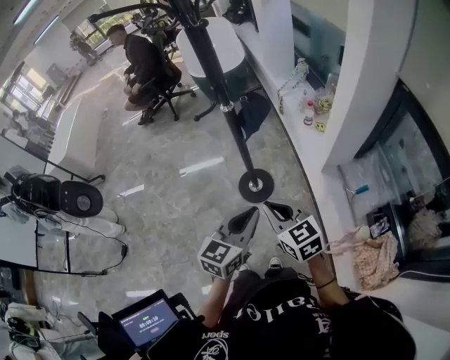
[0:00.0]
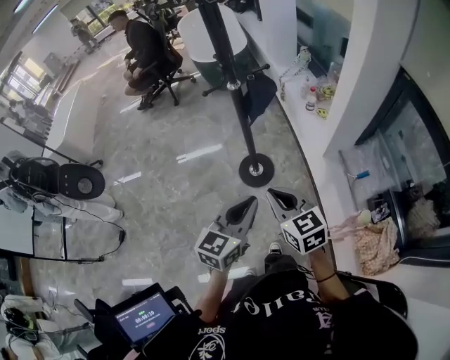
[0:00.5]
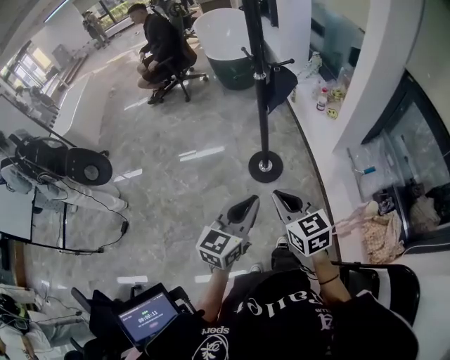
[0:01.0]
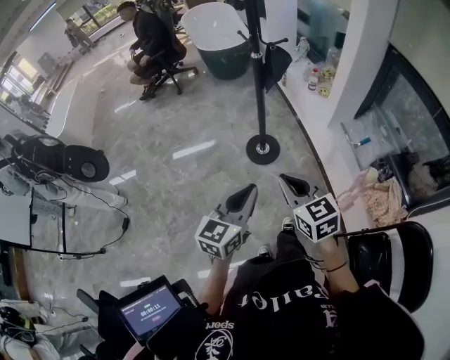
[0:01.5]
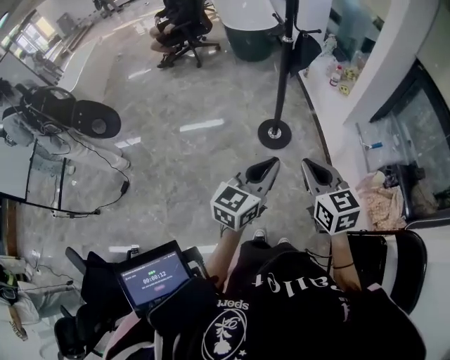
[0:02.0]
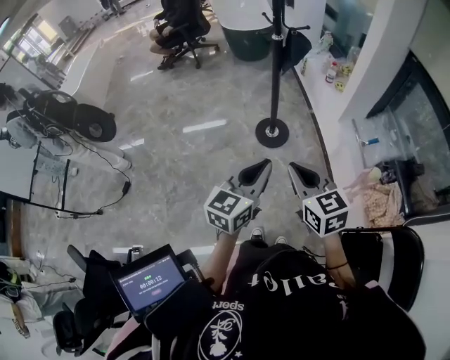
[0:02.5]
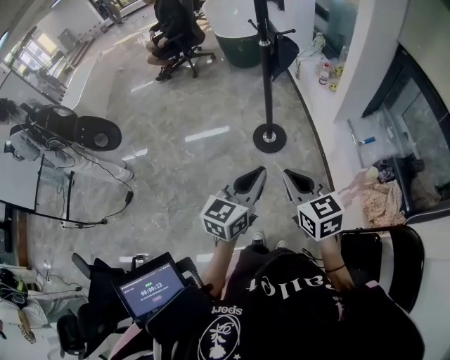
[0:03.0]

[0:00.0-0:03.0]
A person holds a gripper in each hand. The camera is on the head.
0.0 to 1.5 s: Both grippers move backward and to the left, approximately 25 cm.
1.5 to 3.0 s: The left gripper is displaced to the right by approximately 5 cm; the right gripper shifts about 10 cm backward and to the right.

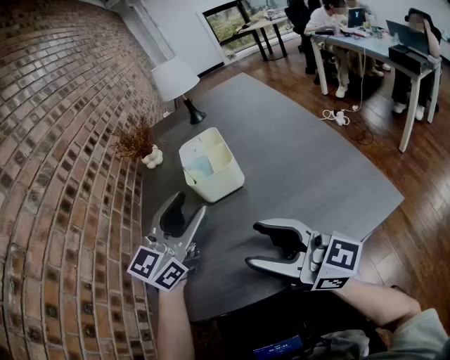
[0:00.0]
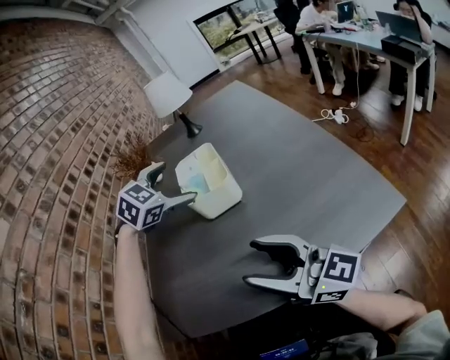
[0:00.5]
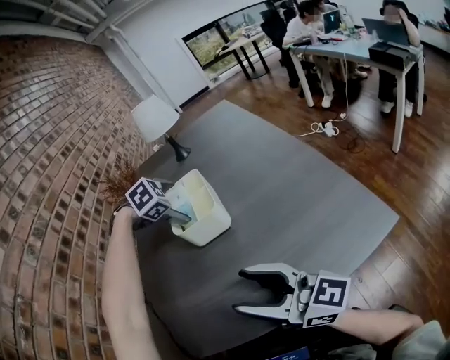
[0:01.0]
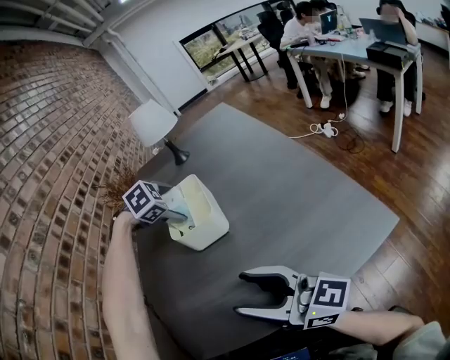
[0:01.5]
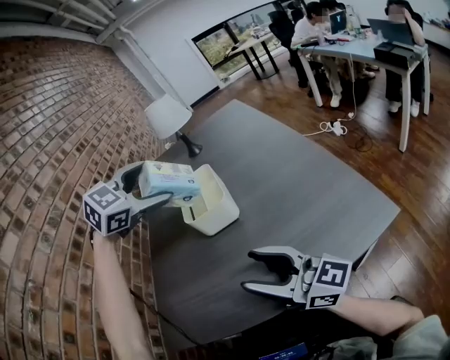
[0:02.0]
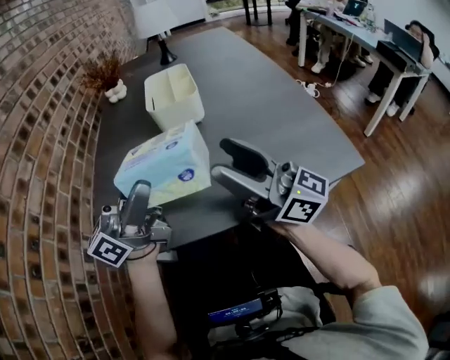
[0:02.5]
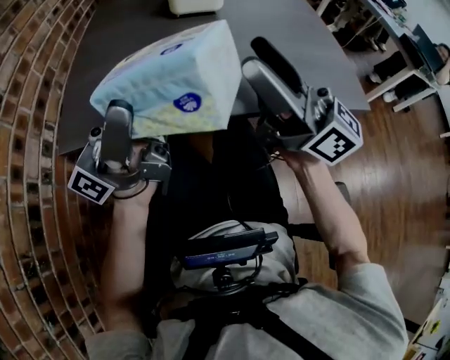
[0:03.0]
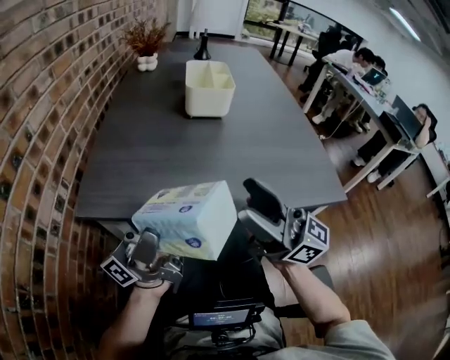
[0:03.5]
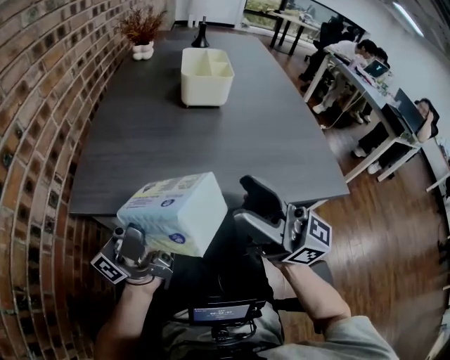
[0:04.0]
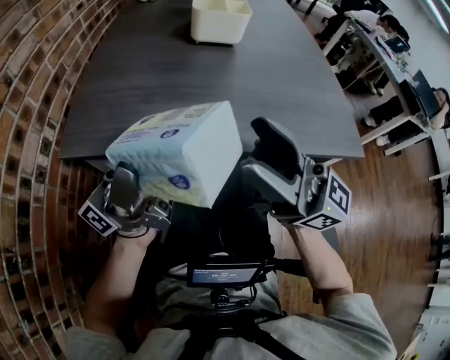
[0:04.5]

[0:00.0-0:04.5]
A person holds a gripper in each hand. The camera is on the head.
0.0 to 2.0 s: The left gripper travels forward and upward by some 15 cm, tilts its fingers about 40 degrees downward, and opens up.
2.0 to 4.5 s: The right gripper heads backward, covering approximately 10 cm. Meanwhile the left gripper travels backward and downward by some 40 cm, and angles its fingers upward, by about 90 degrees.

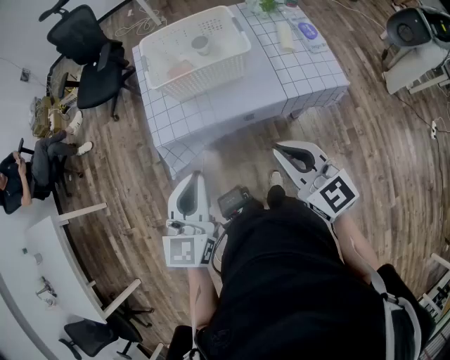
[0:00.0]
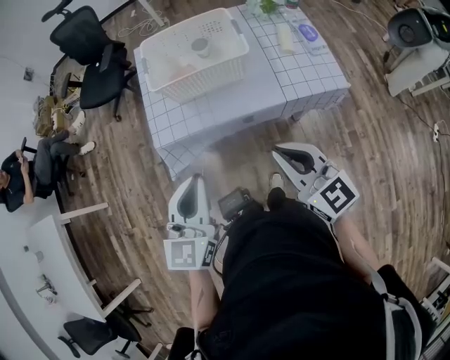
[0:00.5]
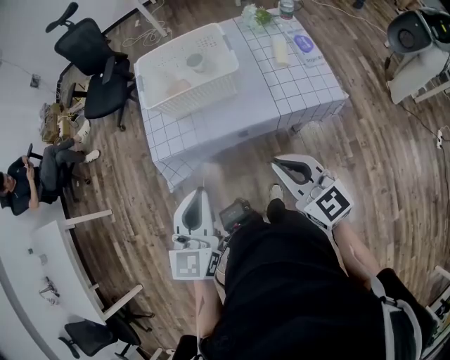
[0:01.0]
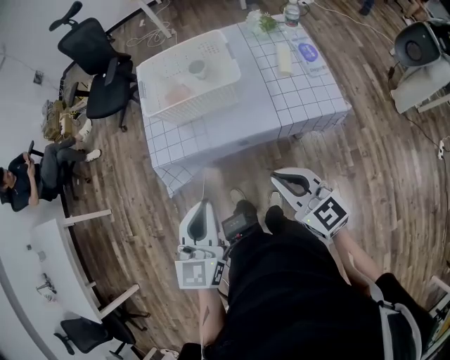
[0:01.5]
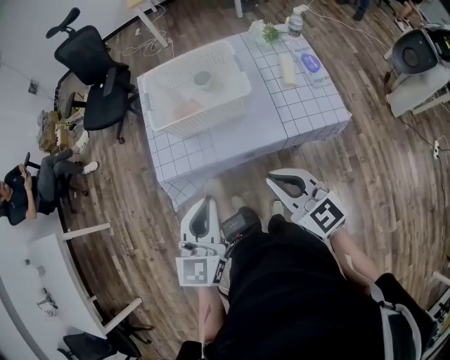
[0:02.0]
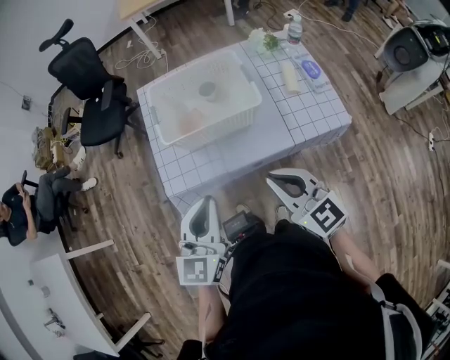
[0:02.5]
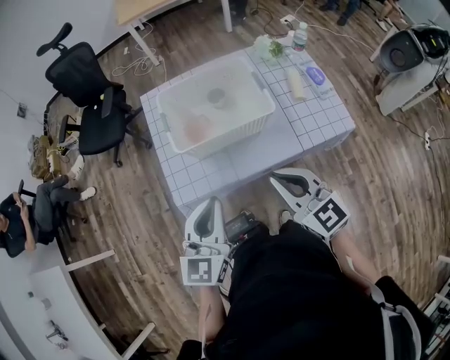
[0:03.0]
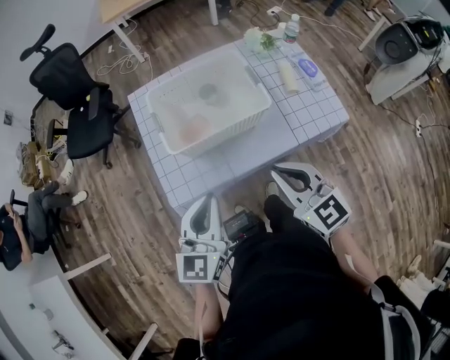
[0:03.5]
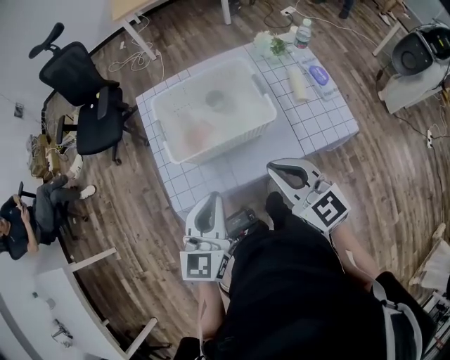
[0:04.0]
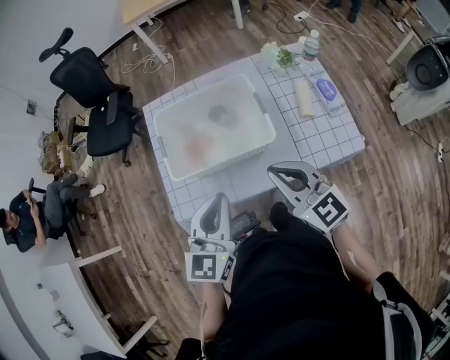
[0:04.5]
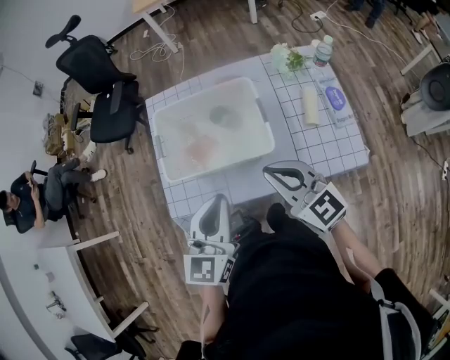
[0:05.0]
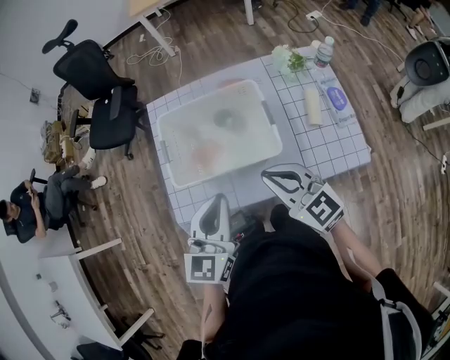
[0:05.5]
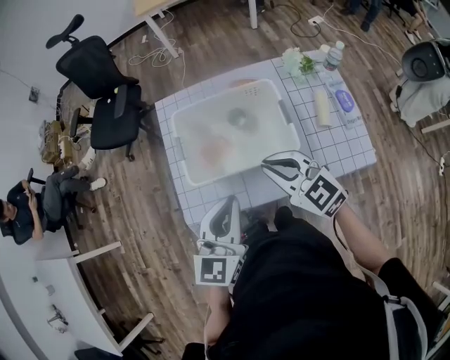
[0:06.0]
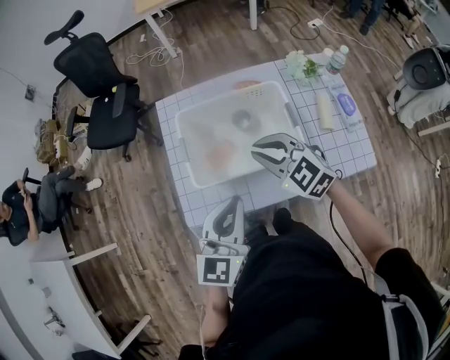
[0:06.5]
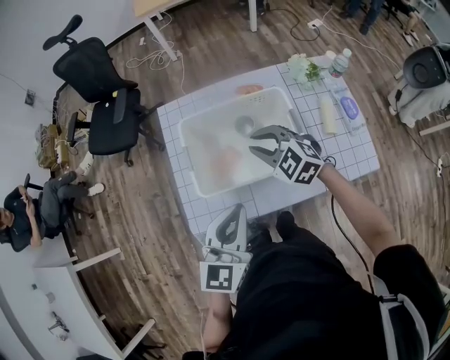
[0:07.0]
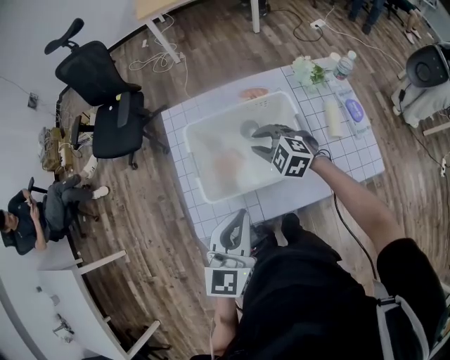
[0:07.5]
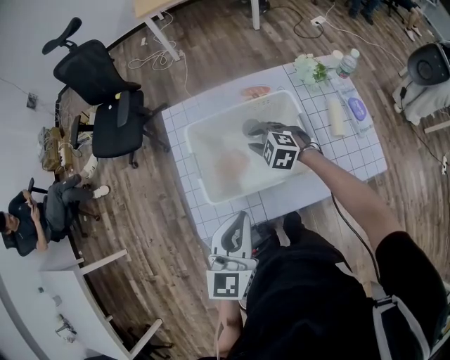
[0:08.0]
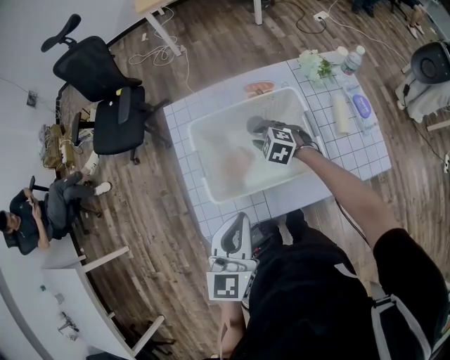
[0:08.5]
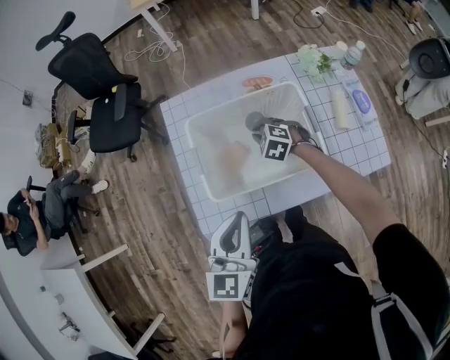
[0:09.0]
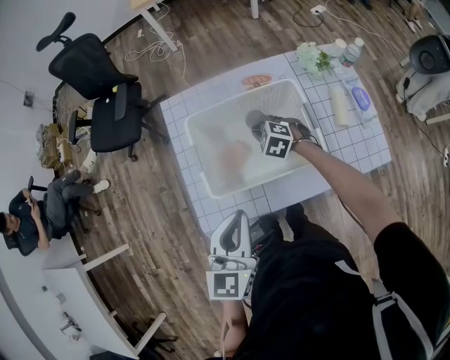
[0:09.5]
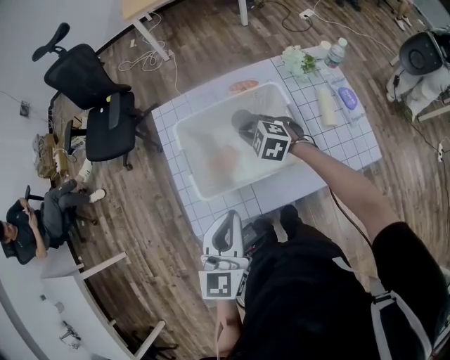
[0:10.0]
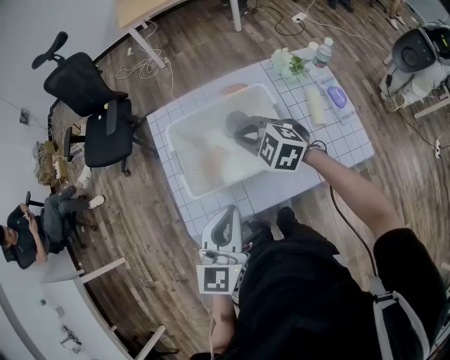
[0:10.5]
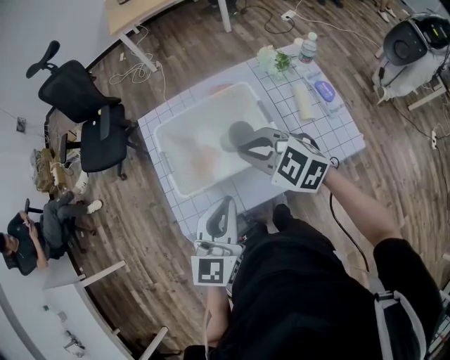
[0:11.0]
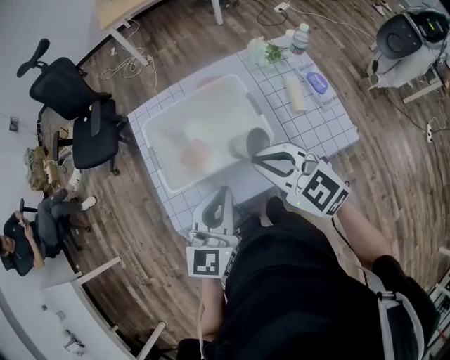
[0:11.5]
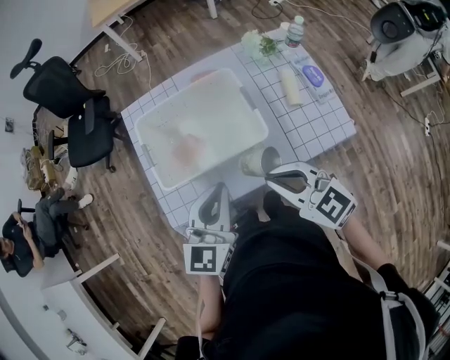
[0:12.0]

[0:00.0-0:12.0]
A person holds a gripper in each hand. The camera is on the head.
0.0 to 2.0 s: The right gripper goes some 5 cm forward; the left gripper moves to the right, about 5 cm.
2.0 to 4.0 s: Both grippers travel together forward, about 15 cm.
4.0 to 6.0 s: The right gripper travels forward by some 10 cm, while the left gripper is displaced forward by approximately 5 cm, and goes to the right and returns, approximately 10 cm each way.
6.0 to 8.0 s: The right gripper is displaced forward and downward by roughly 25 cm, and changes its angle by some 40 degrees.
8.0 to 10.0 s: The right gripper reaches about 5 cm downward, then returns.
10.0 to 12.0 s: The left gripper shifts some 10 cm to the right. Meanwhile the right gripper heads backward and upward, covering about 30 cm, and rotates some 40 degrees.

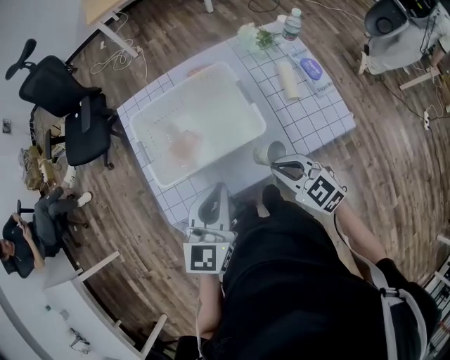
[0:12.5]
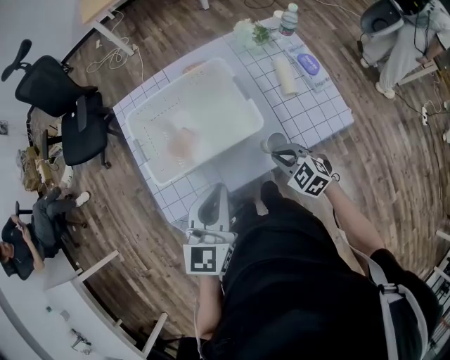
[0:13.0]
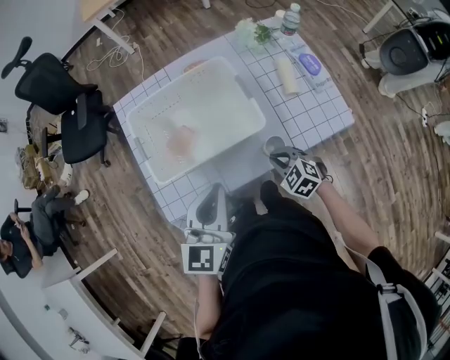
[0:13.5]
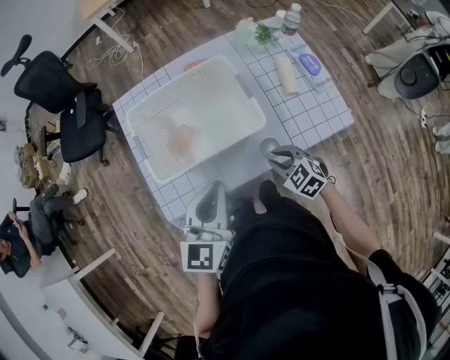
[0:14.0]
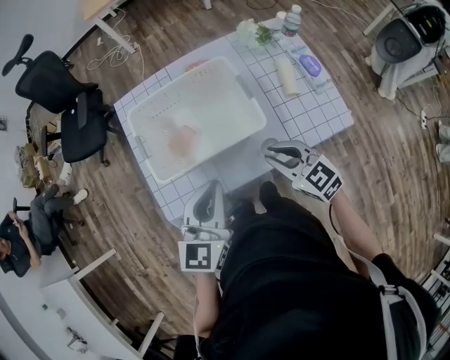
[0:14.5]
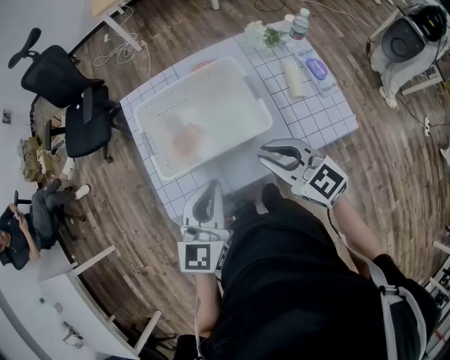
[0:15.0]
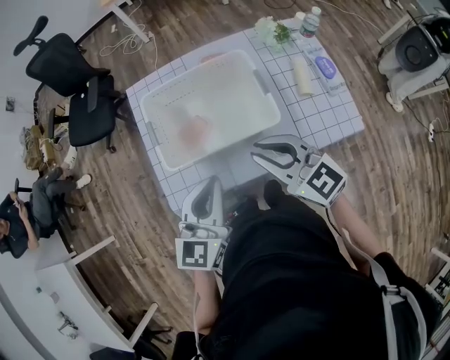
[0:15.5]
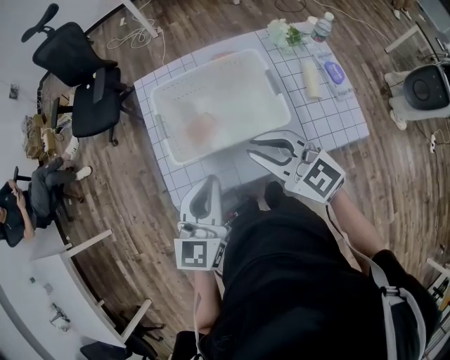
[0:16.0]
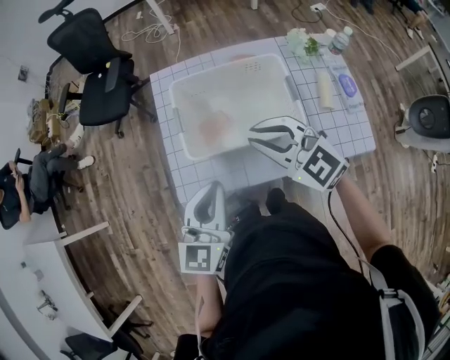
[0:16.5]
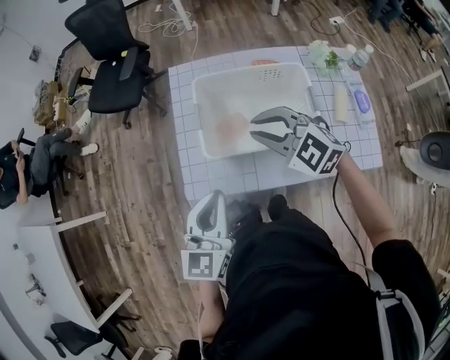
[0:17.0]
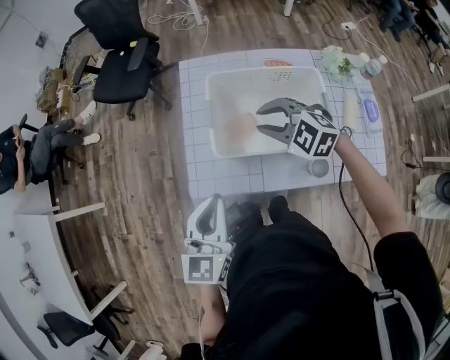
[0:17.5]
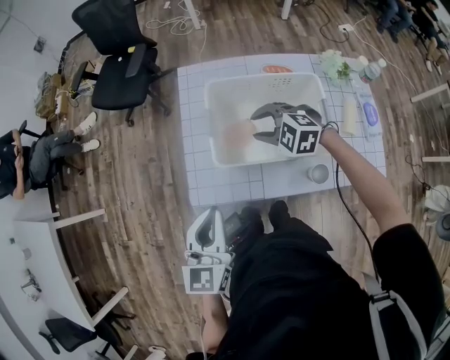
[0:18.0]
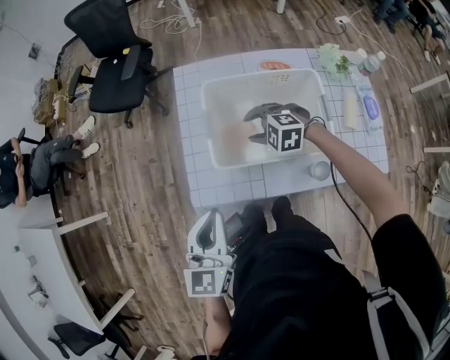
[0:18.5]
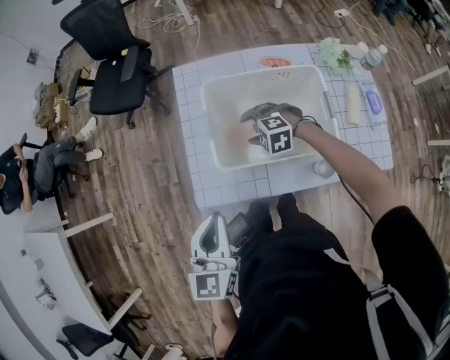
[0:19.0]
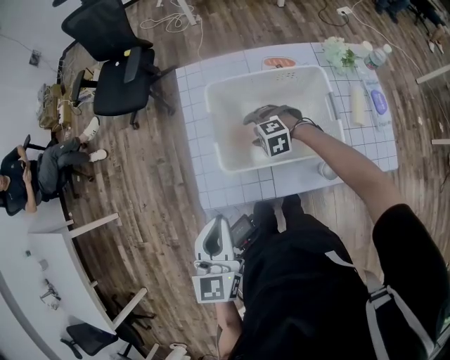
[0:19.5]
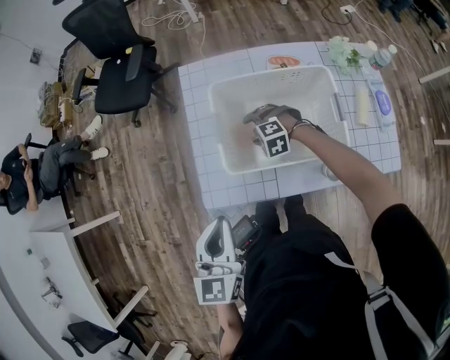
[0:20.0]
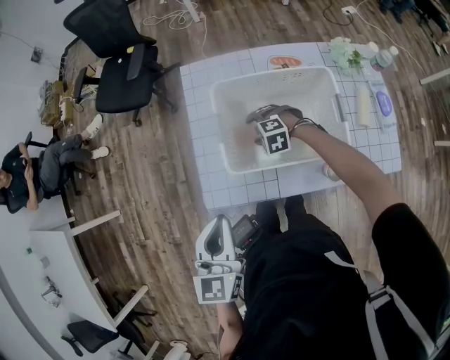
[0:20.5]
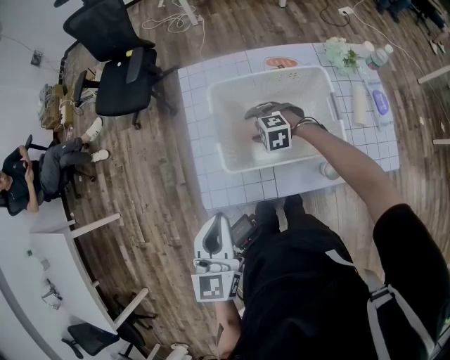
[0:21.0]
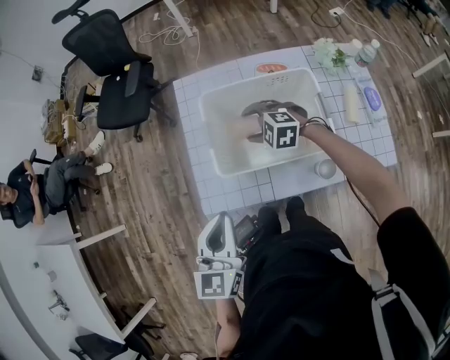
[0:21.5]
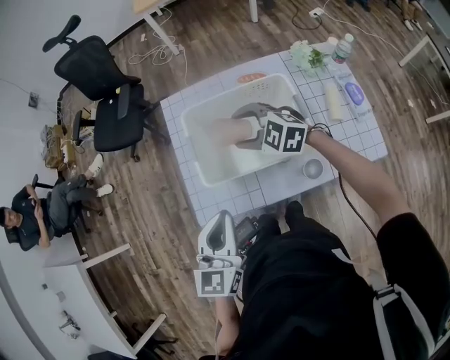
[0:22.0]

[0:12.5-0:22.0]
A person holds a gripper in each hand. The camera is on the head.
12.5 to 14.5 s: The right gripper moves some 15 cm downward and comes back.
14.5 to 16.5 s: The right gripper goes about 20 cm to the left, upward and forward, and swivels roughly 30 degrees, while the left gripper travels to the left by about 10 cm.
16.5 to 18.0 s: The right gripper moves downward and forward, approximately 20 cm, and rotates roughly 40 degrees; the left gripper shifts roughly 10 cm to the left.
18.0 to 20.0 s: The right gripper is displaced downward by roughly 15 cm, and opens up.
20.0 to 22.0 s: The left gripper moves to the right, about 5 cm, while the right gripper is displaced upward by approximately 20 cm, and rotates about 40 degrees.
